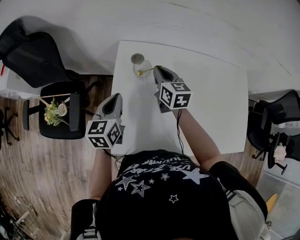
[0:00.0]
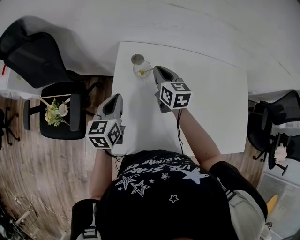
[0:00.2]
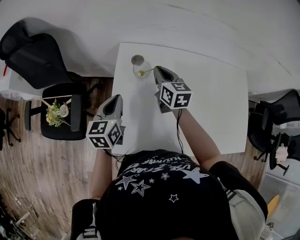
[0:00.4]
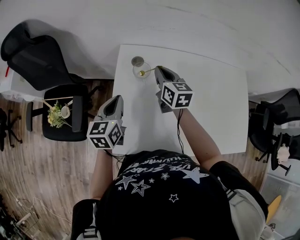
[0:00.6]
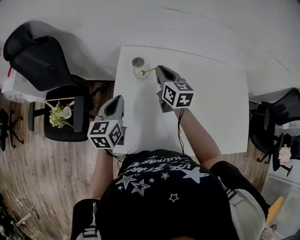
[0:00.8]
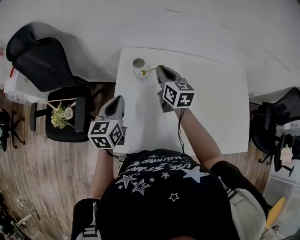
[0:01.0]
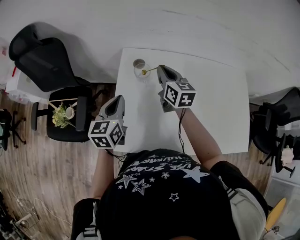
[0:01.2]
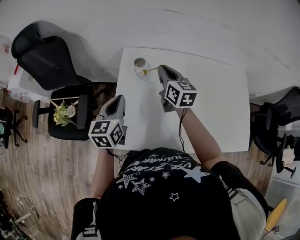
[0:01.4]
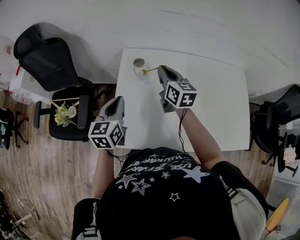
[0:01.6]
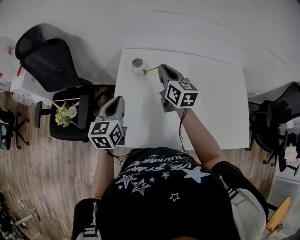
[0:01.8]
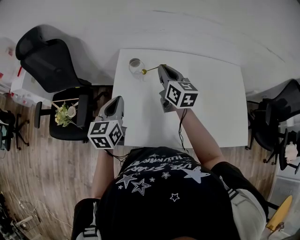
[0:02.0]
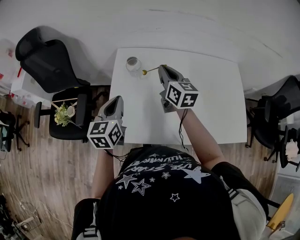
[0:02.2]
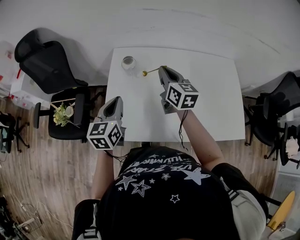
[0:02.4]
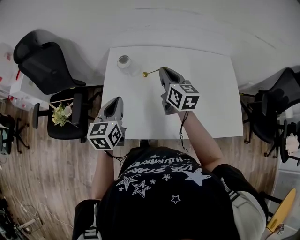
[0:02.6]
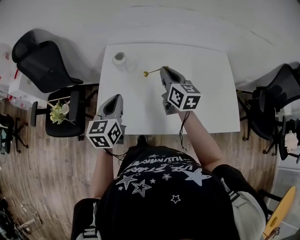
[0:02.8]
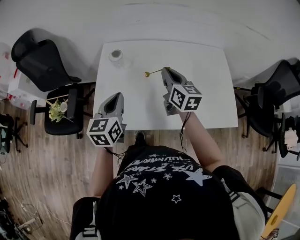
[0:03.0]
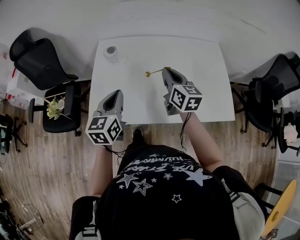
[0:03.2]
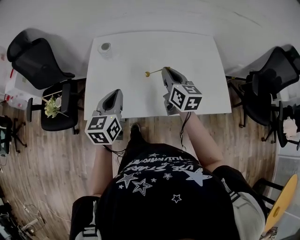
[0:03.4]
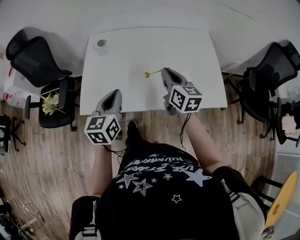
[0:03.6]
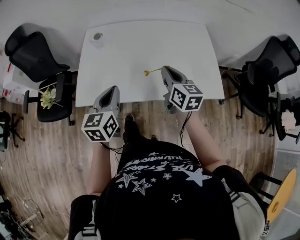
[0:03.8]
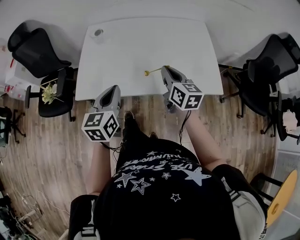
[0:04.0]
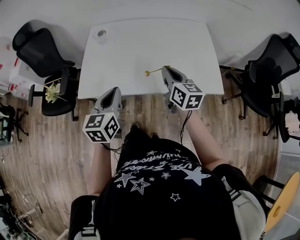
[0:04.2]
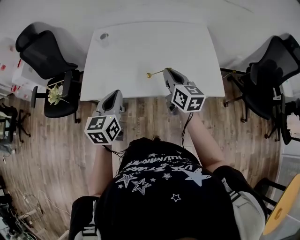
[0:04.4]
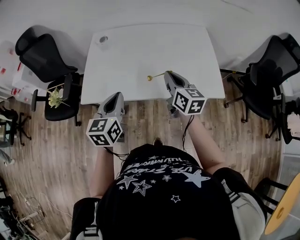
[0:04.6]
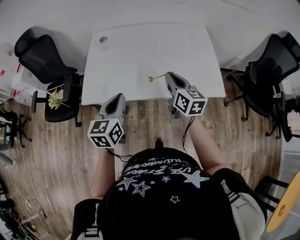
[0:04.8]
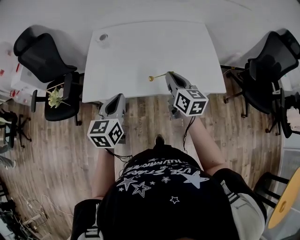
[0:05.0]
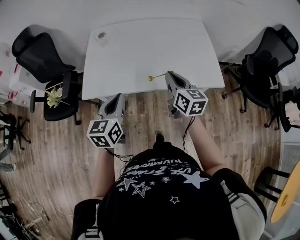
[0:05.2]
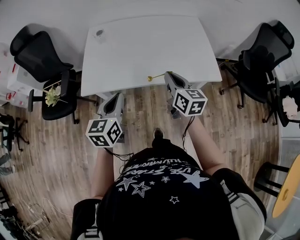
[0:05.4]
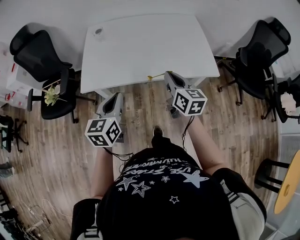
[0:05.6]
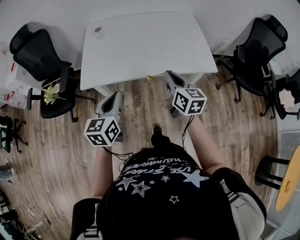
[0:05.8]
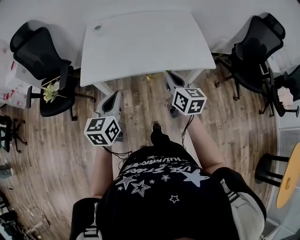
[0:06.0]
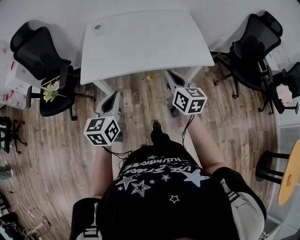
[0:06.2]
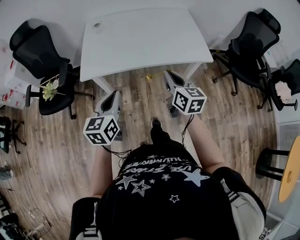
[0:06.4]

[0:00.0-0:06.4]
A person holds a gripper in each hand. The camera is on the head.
0:00.0 to 0:01.6: The right gripper heads upward and backward, covering about 10 cm; the left gripper goes roughly 5 cm backward.
0:01.6 to 0:03.2: The right gripper travels backward and to the right by roughly 25 cm. Meanwhile the left gripper travels to the right and backward by approximately 20 cm.
0:03.2 to 0:04.8: Both grippers move backward and to the right, some 20 cm.
0:04.8 to 0:06.4: Both grippers move backward, roughly 20 cm.

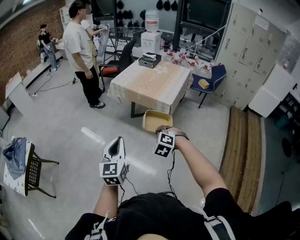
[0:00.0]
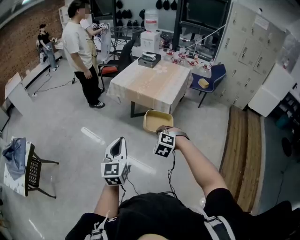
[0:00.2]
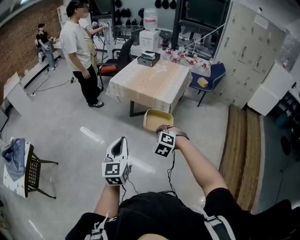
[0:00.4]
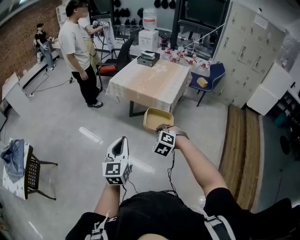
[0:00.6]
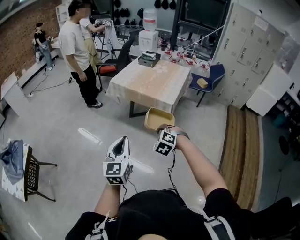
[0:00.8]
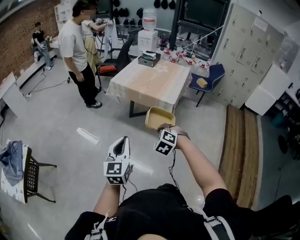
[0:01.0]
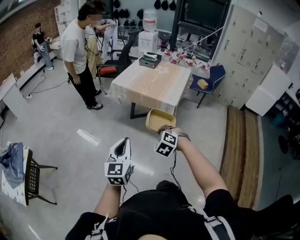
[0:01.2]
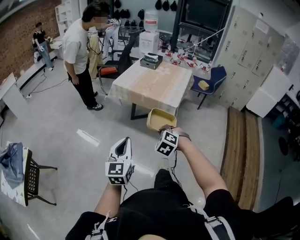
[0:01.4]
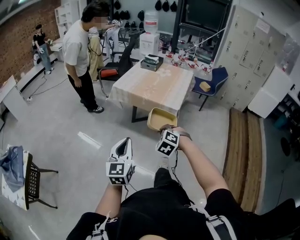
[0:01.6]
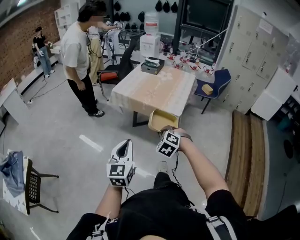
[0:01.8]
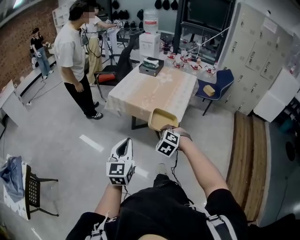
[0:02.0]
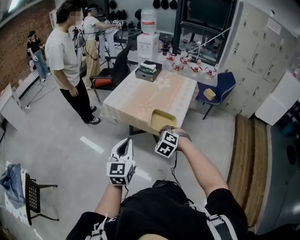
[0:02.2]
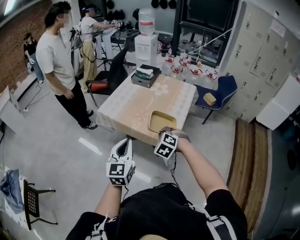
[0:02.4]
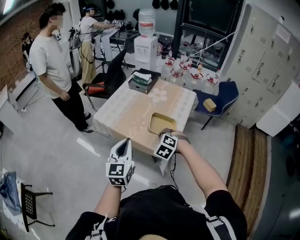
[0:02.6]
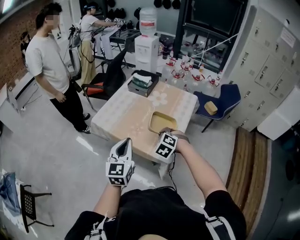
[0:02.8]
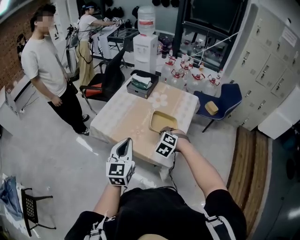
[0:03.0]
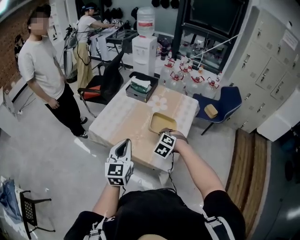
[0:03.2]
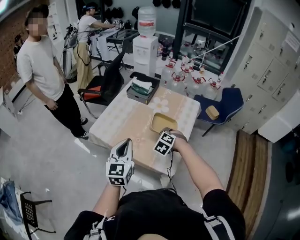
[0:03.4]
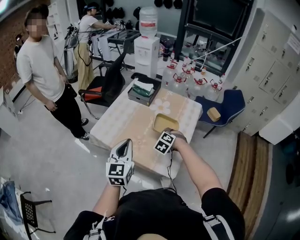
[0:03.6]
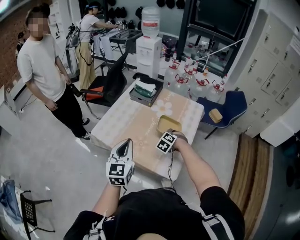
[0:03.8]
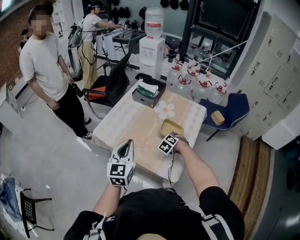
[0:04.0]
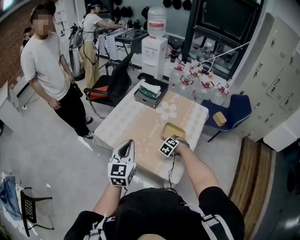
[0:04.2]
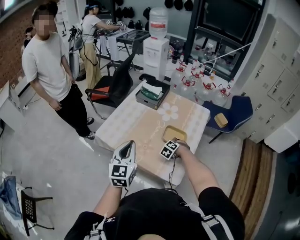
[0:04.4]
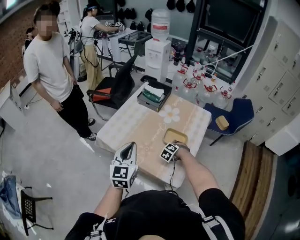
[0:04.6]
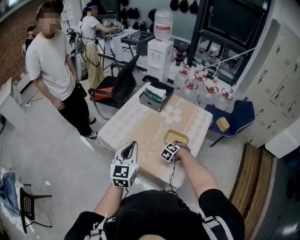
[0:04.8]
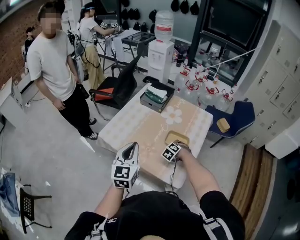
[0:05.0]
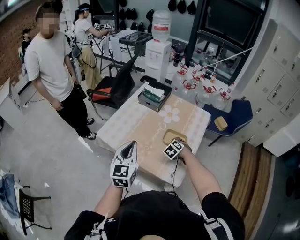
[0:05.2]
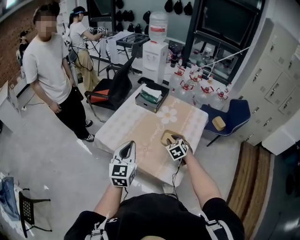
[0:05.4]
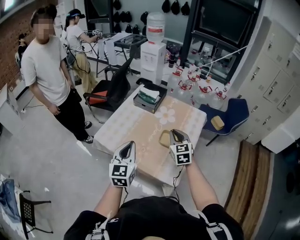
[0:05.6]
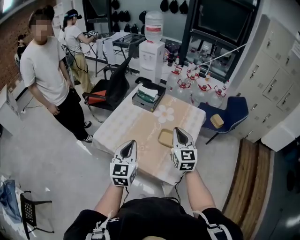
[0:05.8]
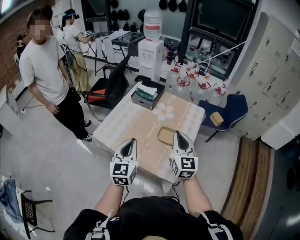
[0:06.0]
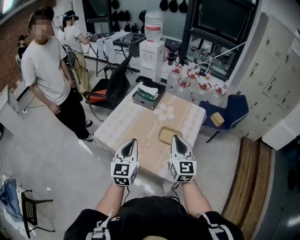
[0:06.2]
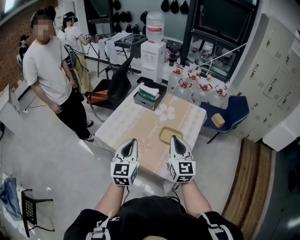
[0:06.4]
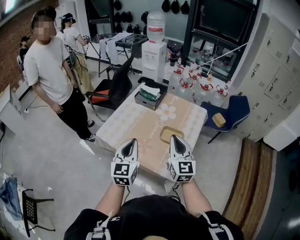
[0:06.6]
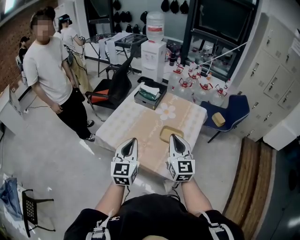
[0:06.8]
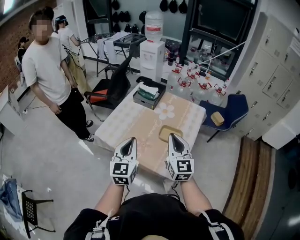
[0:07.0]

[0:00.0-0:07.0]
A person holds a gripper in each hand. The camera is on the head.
0:00.0 to 0:01.4: The two grippers go roughly 10 cm to the left and forward.
0:01.4 to 0:02.8: The two grippers travel together, forward, some 70 cm.
0:02.8 to 0:04.2: The left gripper is displaced forward by approximately 15 cm. The right gripper heads forward and downward, covering about 25 cm.
0:04.2 to 0:05.6: The right gripper moves upward, some 25 cm, tilts its fingers some 40 degrees upward, and opens, then closes again.
0:05.6 to 0:07.0: The right gripper goes some 15 cm backward and upward, and turns by approximately 20 degrees.

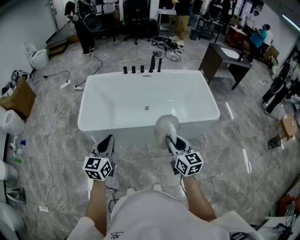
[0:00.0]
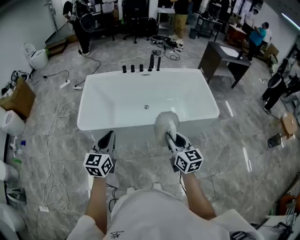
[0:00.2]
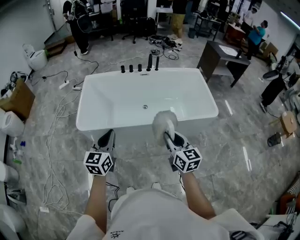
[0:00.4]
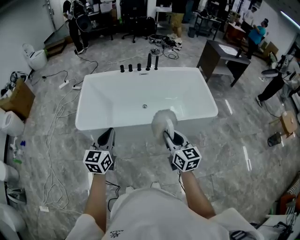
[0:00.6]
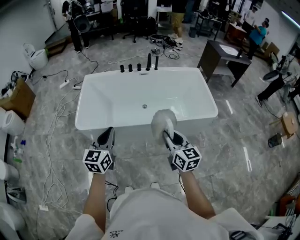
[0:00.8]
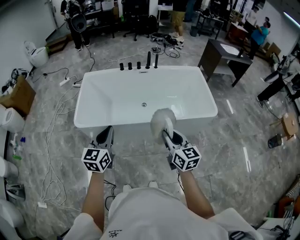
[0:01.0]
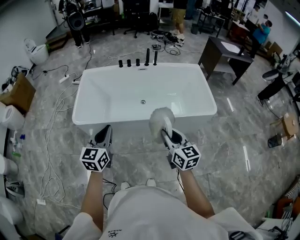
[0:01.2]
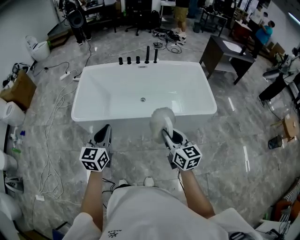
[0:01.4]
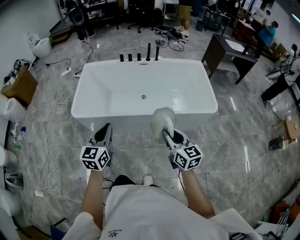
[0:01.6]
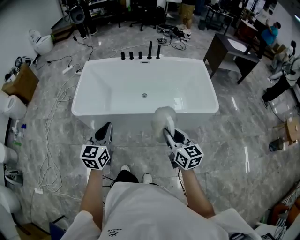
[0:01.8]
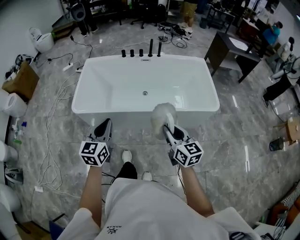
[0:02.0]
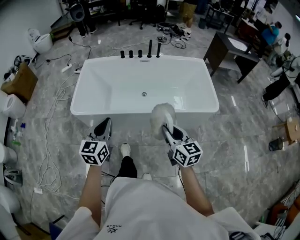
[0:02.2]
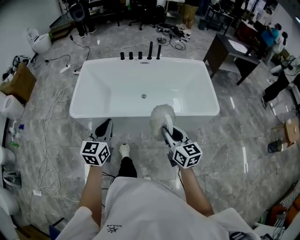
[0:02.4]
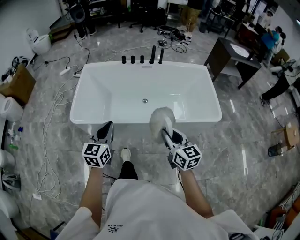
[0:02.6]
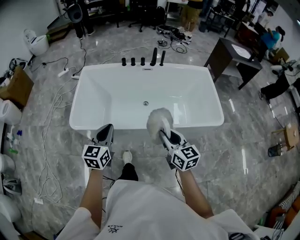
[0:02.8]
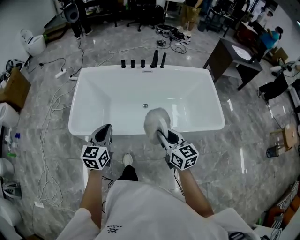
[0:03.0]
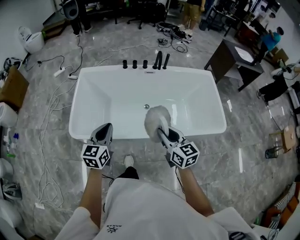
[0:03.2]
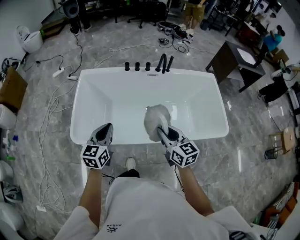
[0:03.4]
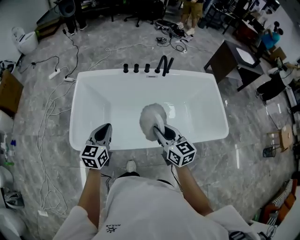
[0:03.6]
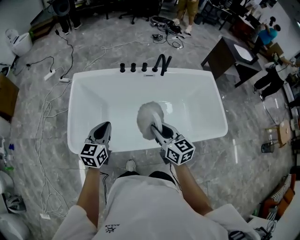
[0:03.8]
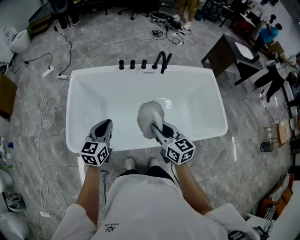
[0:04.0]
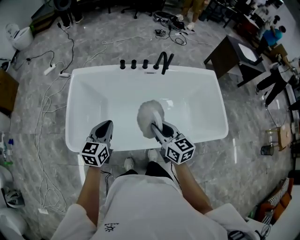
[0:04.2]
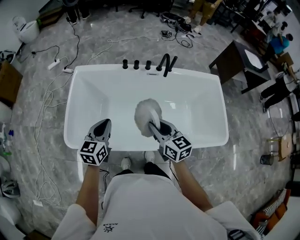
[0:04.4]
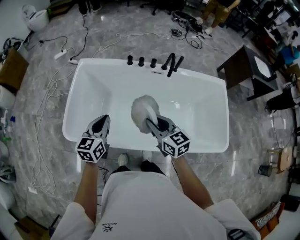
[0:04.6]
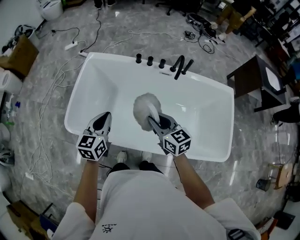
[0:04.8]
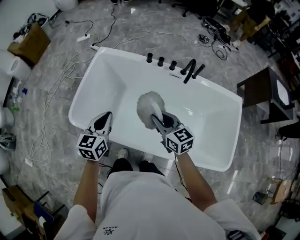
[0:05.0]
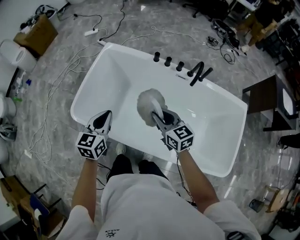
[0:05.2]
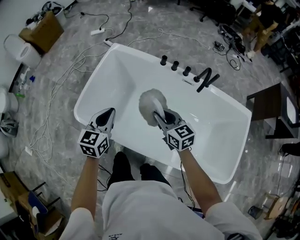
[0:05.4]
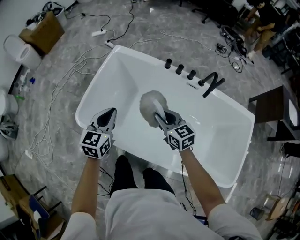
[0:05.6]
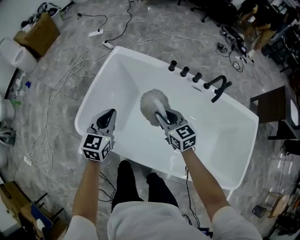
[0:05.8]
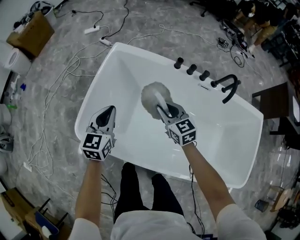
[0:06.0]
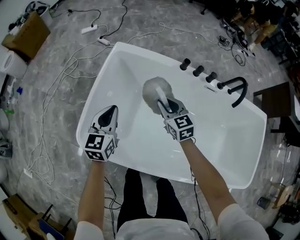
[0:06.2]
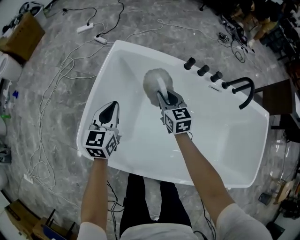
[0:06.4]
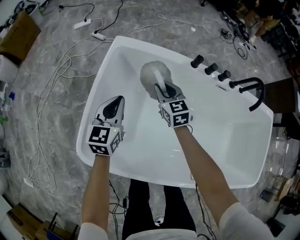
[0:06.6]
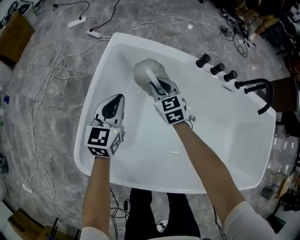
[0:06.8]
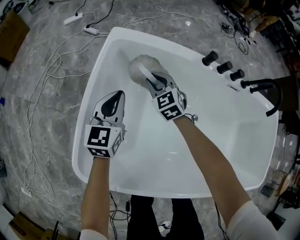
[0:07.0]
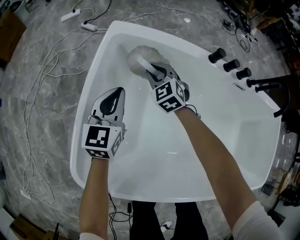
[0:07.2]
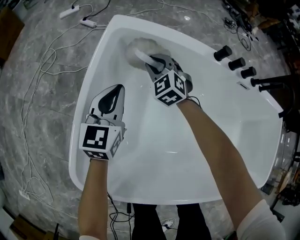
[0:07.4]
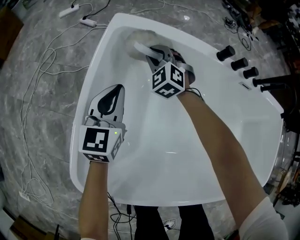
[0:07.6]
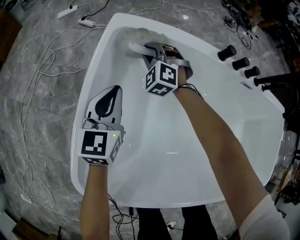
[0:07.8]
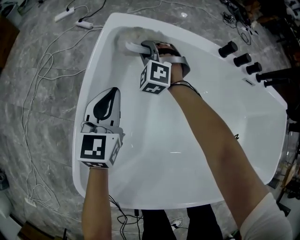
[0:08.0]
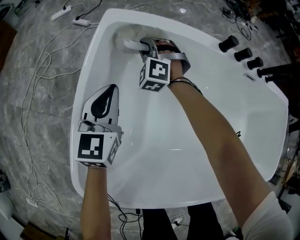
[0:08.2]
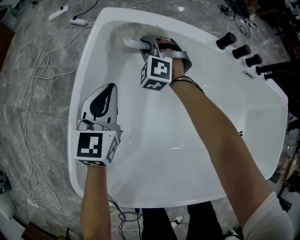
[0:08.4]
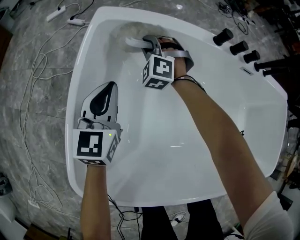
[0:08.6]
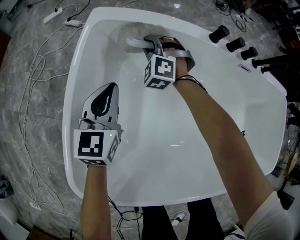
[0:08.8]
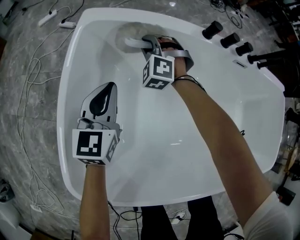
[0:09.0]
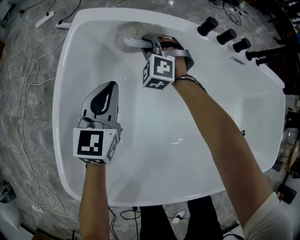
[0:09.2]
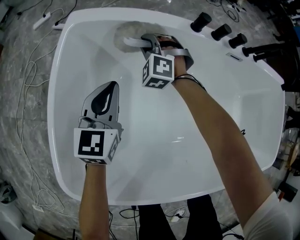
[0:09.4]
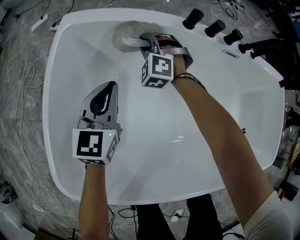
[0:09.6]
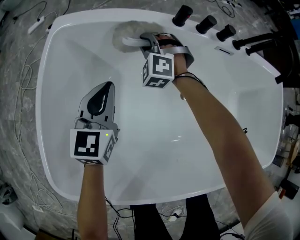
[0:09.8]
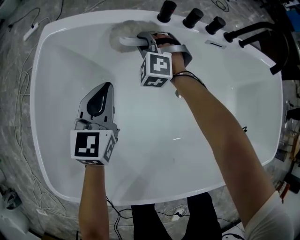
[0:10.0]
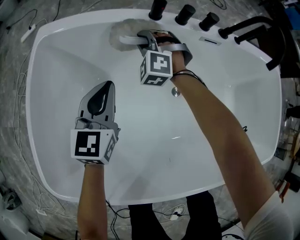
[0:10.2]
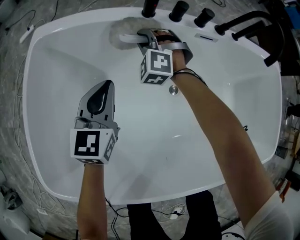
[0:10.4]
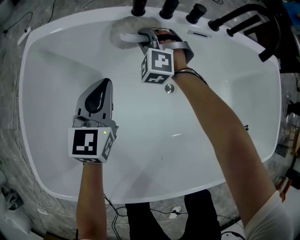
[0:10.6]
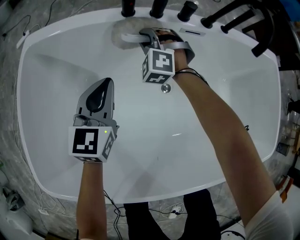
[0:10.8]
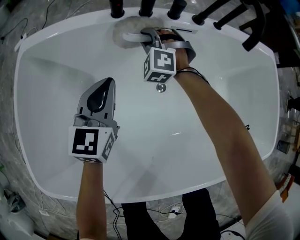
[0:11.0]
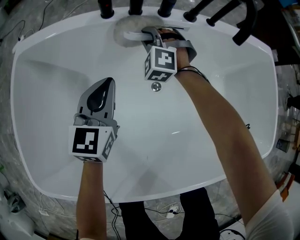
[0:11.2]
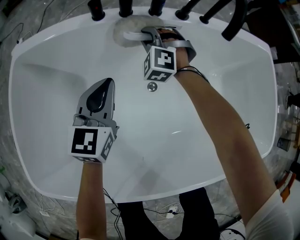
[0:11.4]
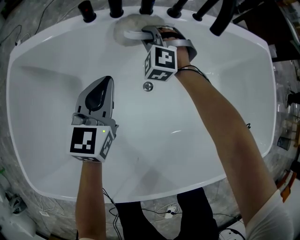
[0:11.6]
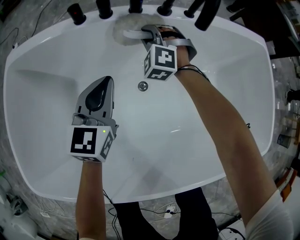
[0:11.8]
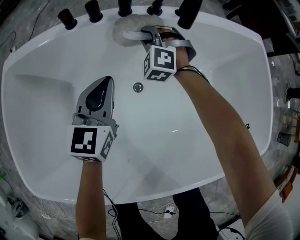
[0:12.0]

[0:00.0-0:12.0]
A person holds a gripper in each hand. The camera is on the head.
0:00.0 to 0:01.6: Both grippers travel together to the right, about 10 cm.
0:01.6 to 0:03.0: Both grippers move forward, approximately 20 cm.
0:03.0 to 0:04.4: The grippers both shift forward by approximately 20 cm.
0:04.4 to 0:06.0: The right gripper changes place by some 35 cm, and changes its angle by roughly 30 degrees; the left gripper changes place by about 25 cm, and swivels roughly 20 degrees.
0:06.0 to 0:07.6: The right gripper is displaced forward, downward and to the left by about 40 cm, and twists approximately 40 degrees counterclockwise, seen from behind, while the left gripper heads downward and forward, covering about 30 cm.
0:07.6 to 0:09.0: The right gripper heads to the right, covering about 5 cm; the left gripper shifts by some 5 cm.
0:09.0 to 0:10.4: The grippers both shift to the right by approximately 20 cm.
0:10.4 to 0:12.0: The grippers both shift to the right by some 25 cm.
